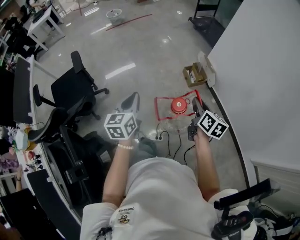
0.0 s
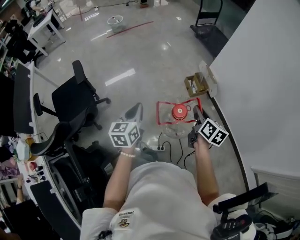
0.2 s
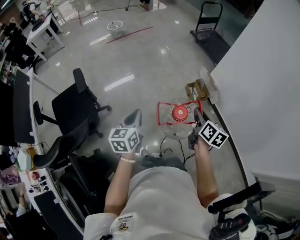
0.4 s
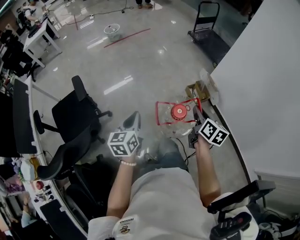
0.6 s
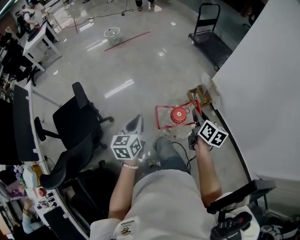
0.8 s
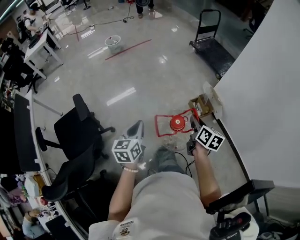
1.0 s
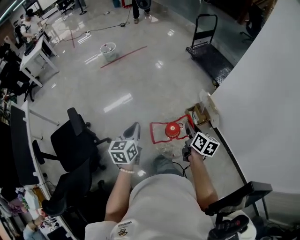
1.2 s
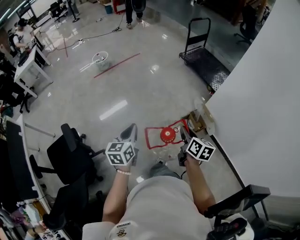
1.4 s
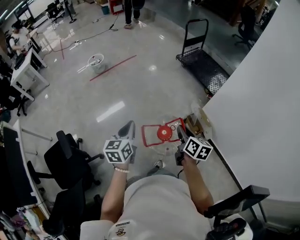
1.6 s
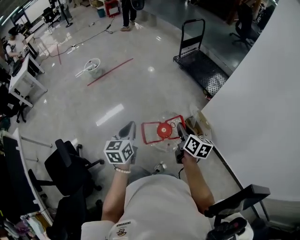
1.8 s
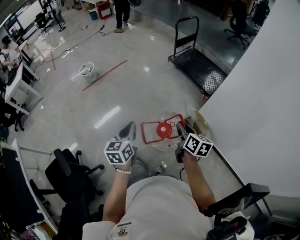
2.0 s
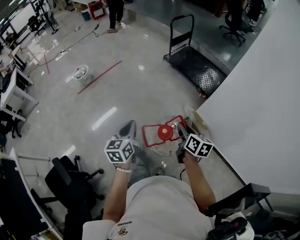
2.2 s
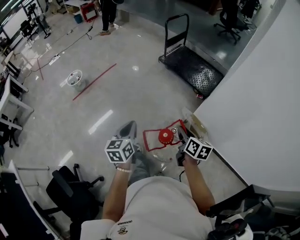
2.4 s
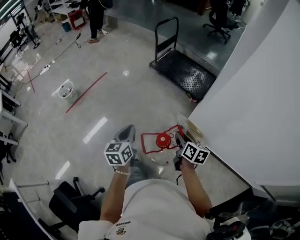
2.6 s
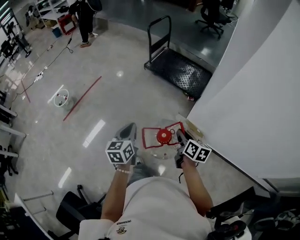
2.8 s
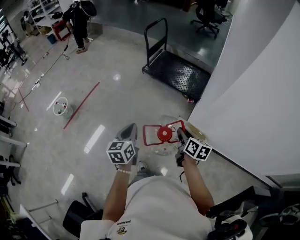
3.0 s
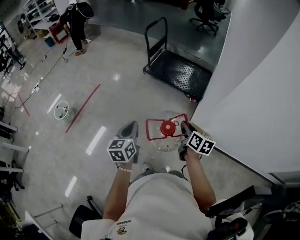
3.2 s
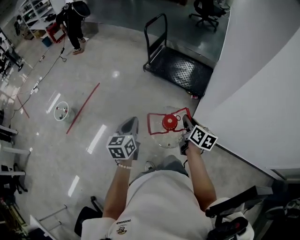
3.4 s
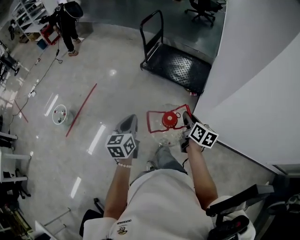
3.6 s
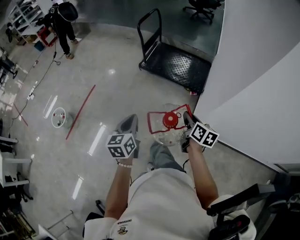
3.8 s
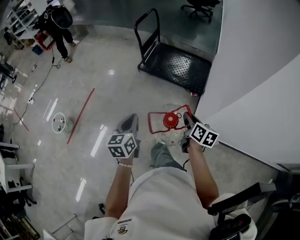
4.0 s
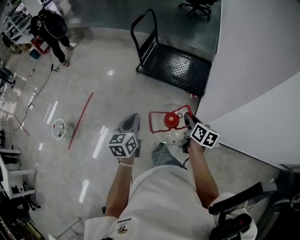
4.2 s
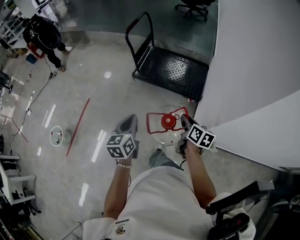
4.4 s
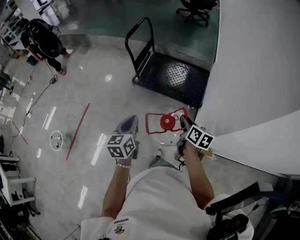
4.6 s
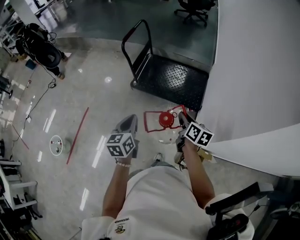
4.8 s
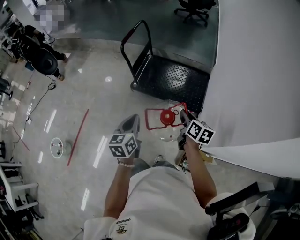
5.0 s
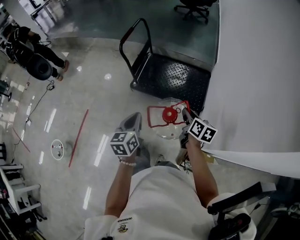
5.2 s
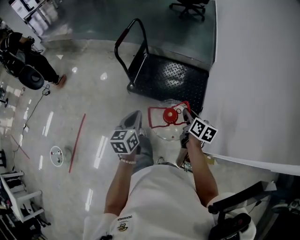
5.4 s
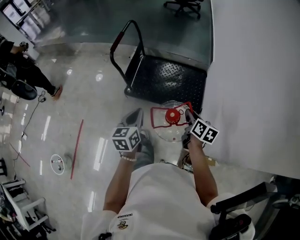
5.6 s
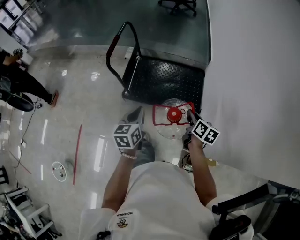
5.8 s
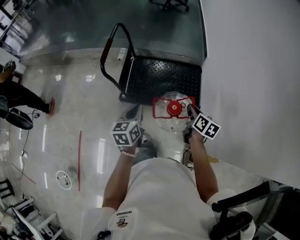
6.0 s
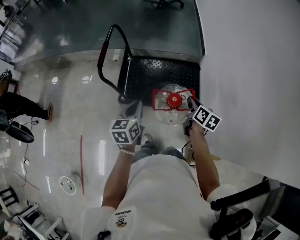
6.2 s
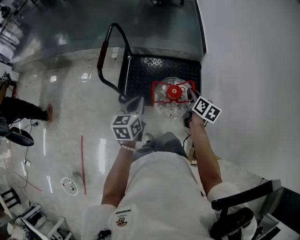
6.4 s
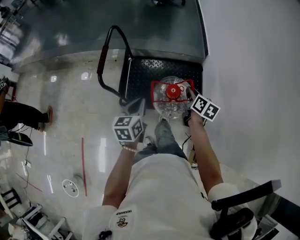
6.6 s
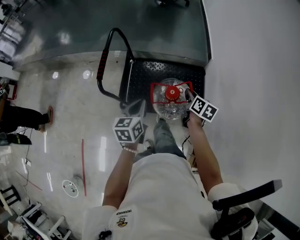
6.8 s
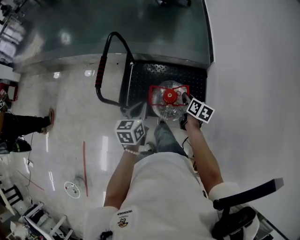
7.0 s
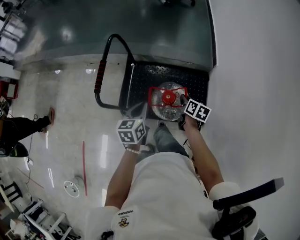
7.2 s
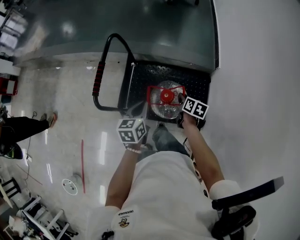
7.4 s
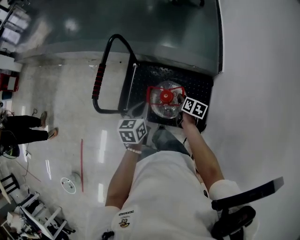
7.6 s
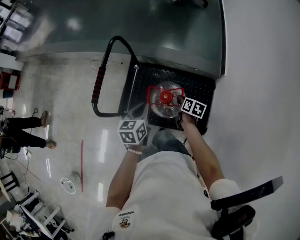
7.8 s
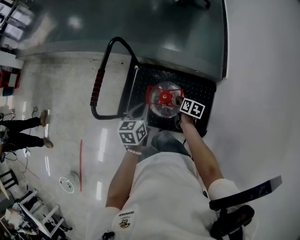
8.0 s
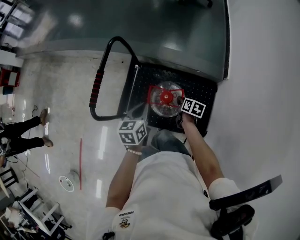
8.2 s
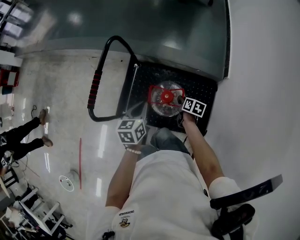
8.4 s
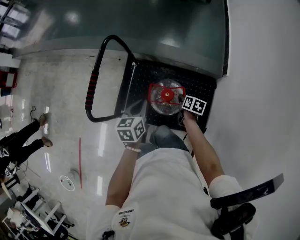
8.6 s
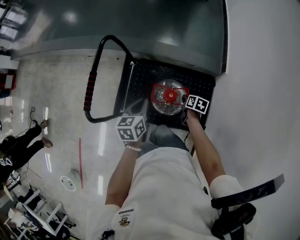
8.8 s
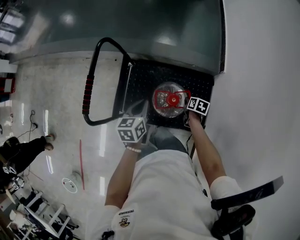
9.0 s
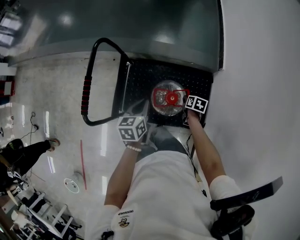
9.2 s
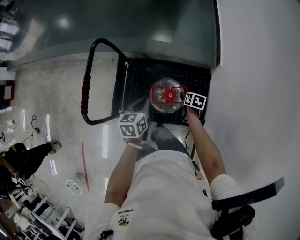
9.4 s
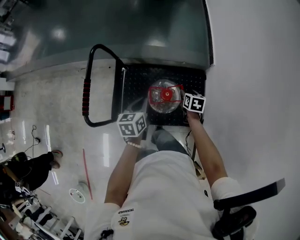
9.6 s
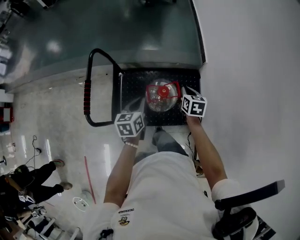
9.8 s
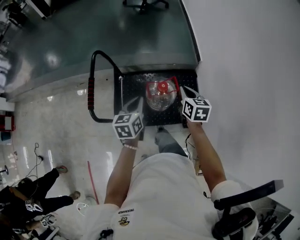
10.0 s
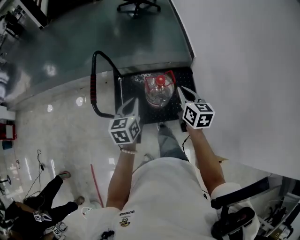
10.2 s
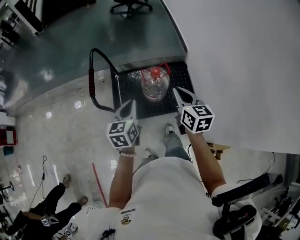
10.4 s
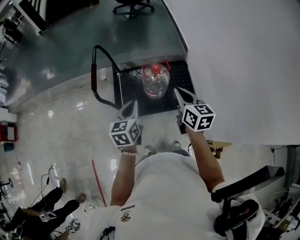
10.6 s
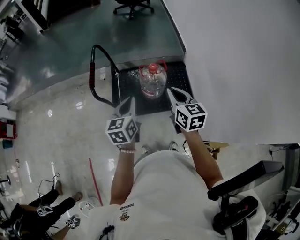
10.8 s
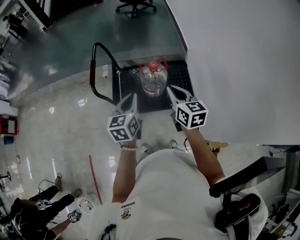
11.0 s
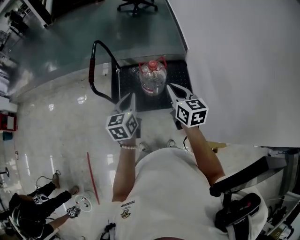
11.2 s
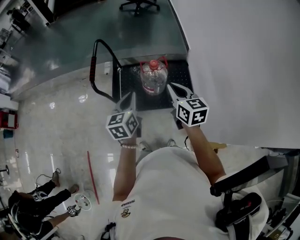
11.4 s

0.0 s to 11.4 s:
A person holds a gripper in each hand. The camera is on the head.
0.0 to 1.4 s: The pair of grippers is taken forward, about 40 cm.
1.4 to 2.8 s: Both grippers are carried forward, about 50 cm.
2.8 to 4.2 s: Both grippers move forward, approximately 35 cm.
4.2 to 5.6 s: The two grippers travel together, forward, approximately 50 cm.
5.6 to 7.2 s: The two grippers travel together, forward, approximately 40 cm.
7.2 to 8.6 s: The left gripper heads forward and downward, covering roughly 10 cm, while the right gripper is displaced downward and forward by approximately 15 cm.
8.6 to 10.0 s: The left gripper goes approximately 10 cm upward, while the right gripper is displaced upward by some 25 cm, swivels some 30 degrees, and opens, then closes again.
10.0 to 11.4 s: The left gripper goes forward and backward, some 10 cm each way, reversing 2 times, while the right gripper heads upward and backward, covering approximately 15 cm, and changes its angle by some 20 degrees.

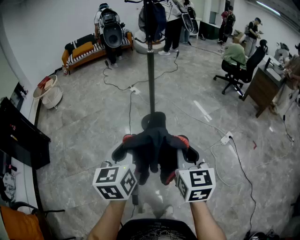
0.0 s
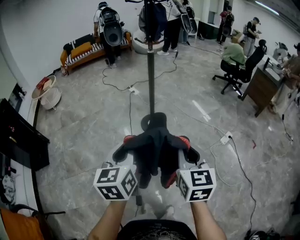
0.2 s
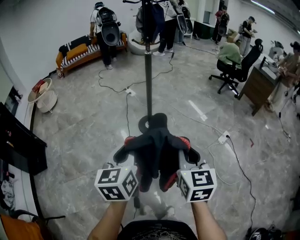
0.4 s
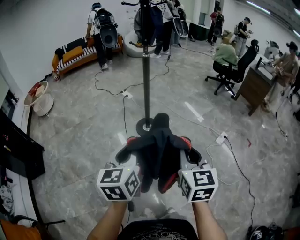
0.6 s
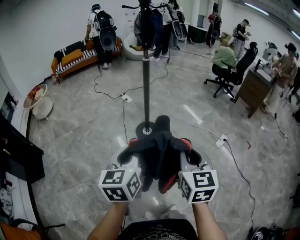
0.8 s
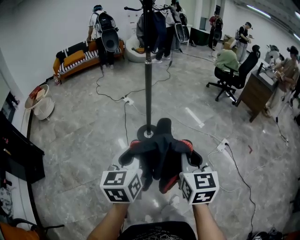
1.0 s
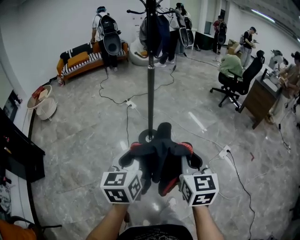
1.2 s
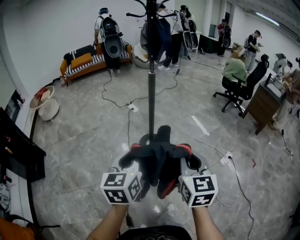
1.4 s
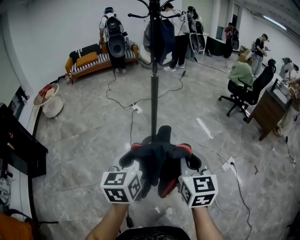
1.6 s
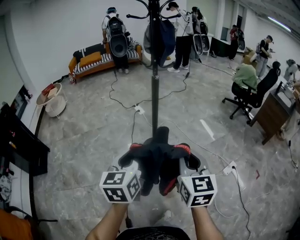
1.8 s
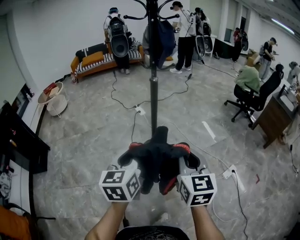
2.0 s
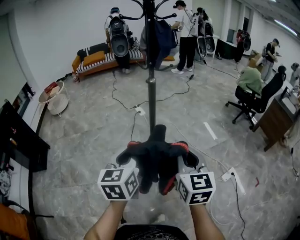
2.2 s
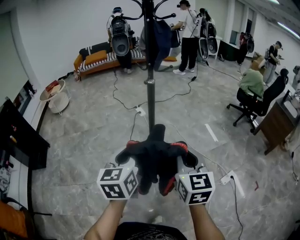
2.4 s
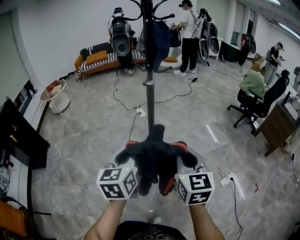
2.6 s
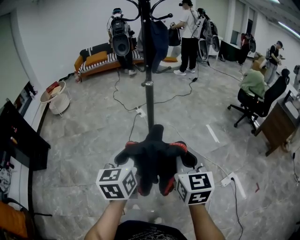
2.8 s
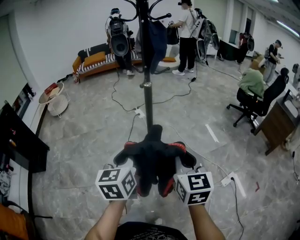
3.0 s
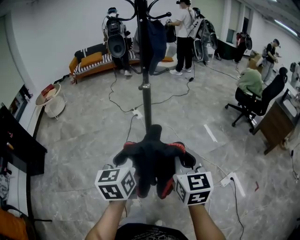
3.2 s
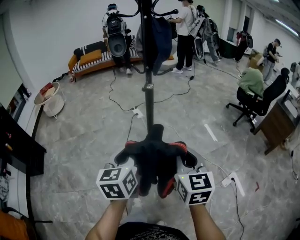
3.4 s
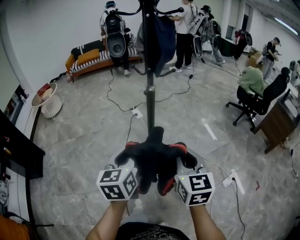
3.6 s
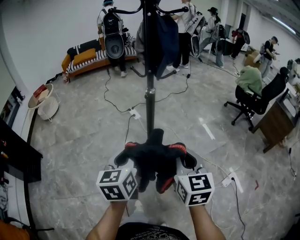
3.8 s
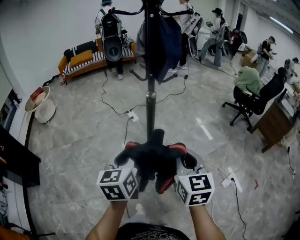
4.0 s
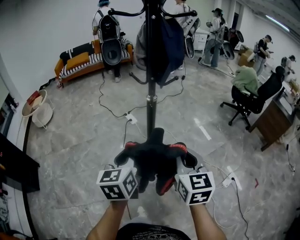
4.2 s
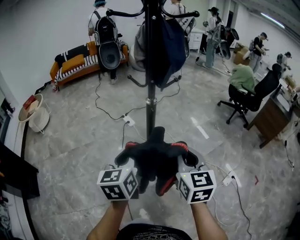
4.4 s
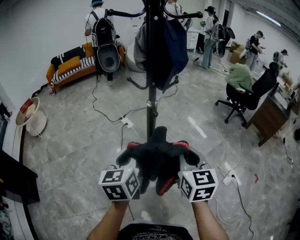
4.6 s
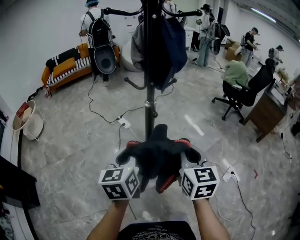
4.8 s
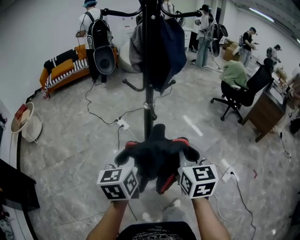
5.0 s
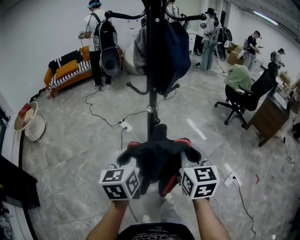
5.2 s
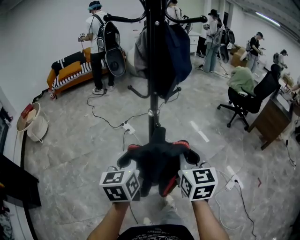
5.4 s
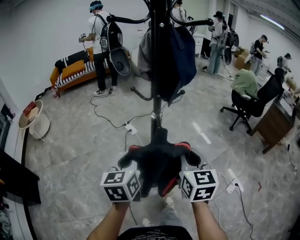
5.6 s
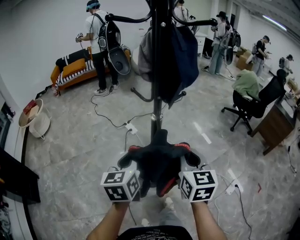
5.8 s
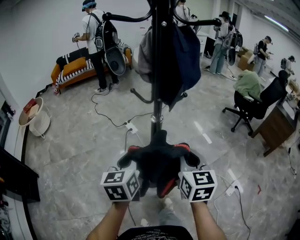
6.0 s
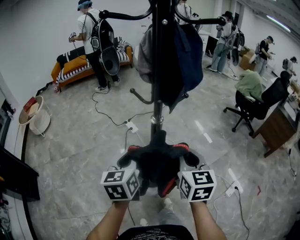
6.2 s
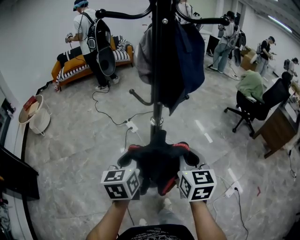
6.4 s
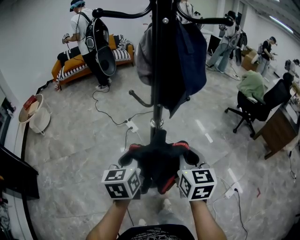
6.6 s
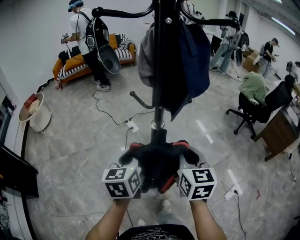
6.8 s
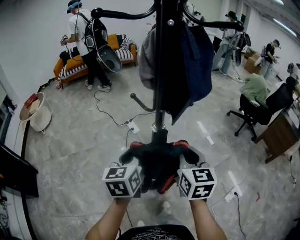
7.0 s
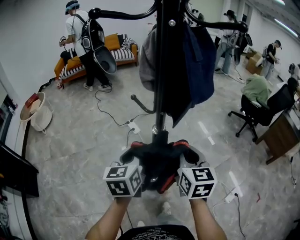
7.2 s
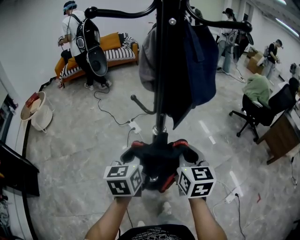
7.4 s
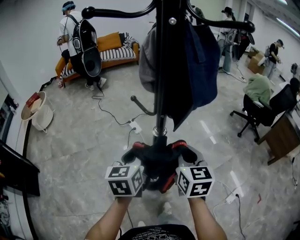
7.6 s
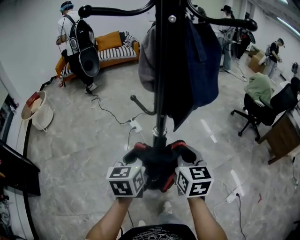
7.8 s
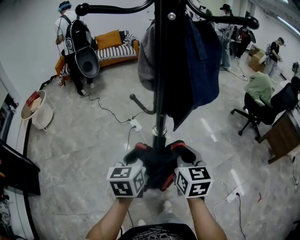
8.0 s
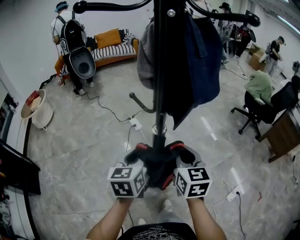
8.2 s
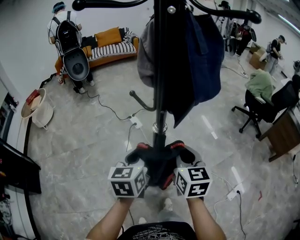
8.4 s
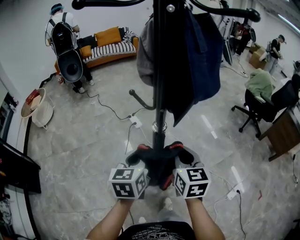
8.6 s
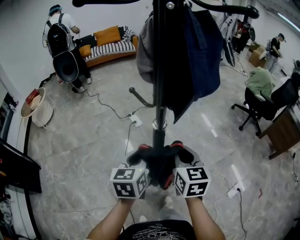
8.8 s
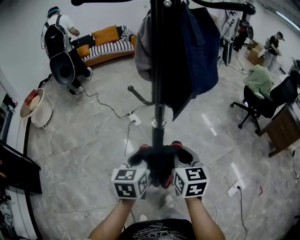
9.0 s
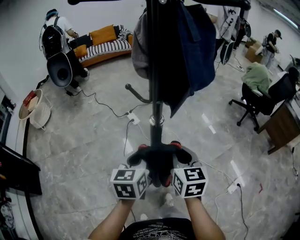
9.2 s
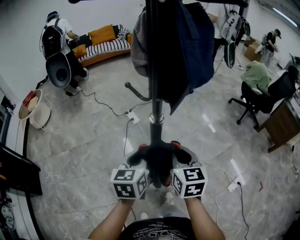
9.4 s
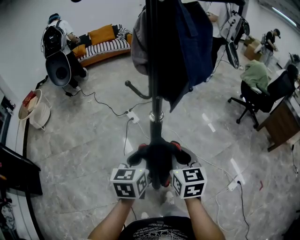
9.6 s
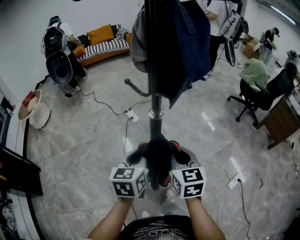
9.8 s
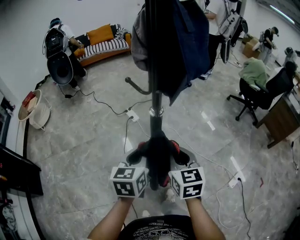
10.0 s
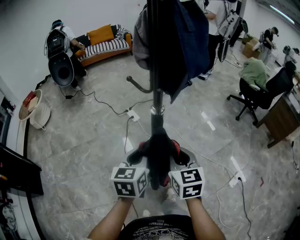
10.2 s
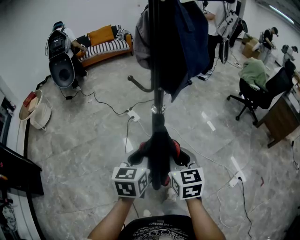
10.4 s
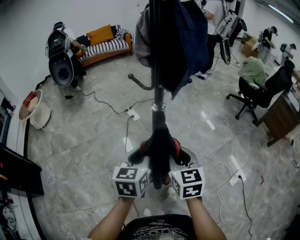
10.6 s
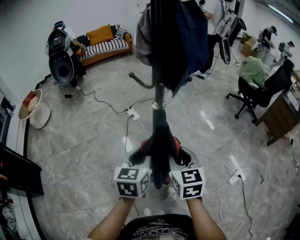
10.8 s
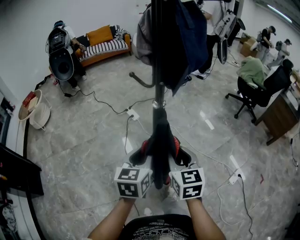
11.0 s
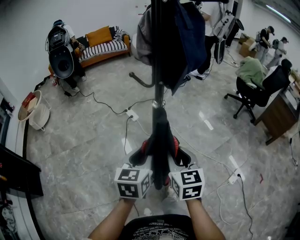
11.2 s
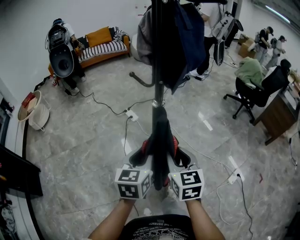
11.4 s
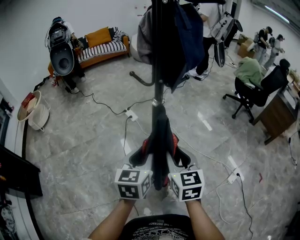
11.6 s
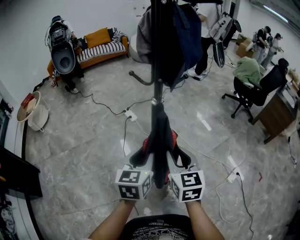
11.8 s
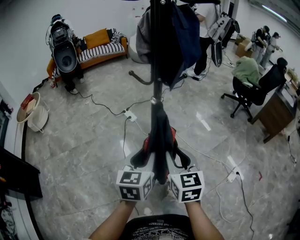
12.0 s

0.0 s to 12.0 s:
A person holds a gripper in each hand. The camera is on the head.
0.0 to 1.6 s: Both grippers travel together forward, some 15 cm.
1.6 to 3.0 s: Both grippers move forward and to the right, approximately 15 cm.
3.0 to 4.4 s: The grippers both shift forward by approximately 20 cm.
4.4 to 6.0 s: Both grippers move forward, approximately 10 cm.
6.0 to 7.6 s: The two grippers go about 10 cm forward.
7.6 to 9.0 s: The left gripper moves about 5 cm.
9.0 to 10.4 s: The two grippers go some 5 cm backward.
10.4 to 12.0 s: Both grippers move backward, roughly 5 cm.

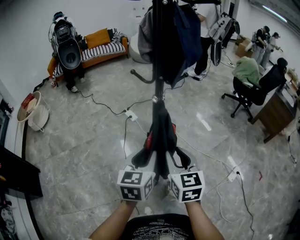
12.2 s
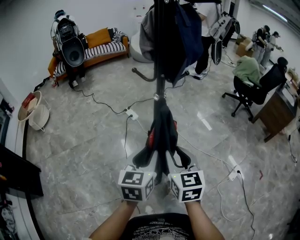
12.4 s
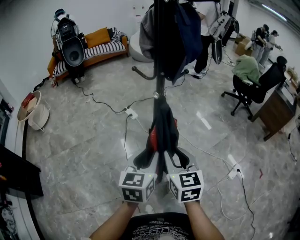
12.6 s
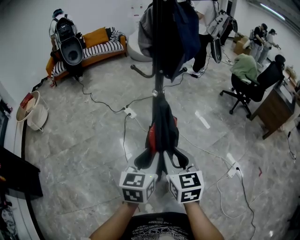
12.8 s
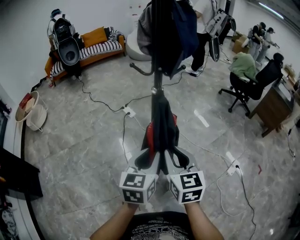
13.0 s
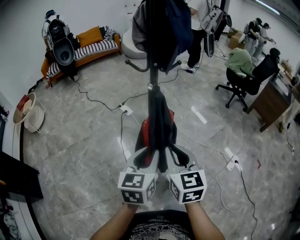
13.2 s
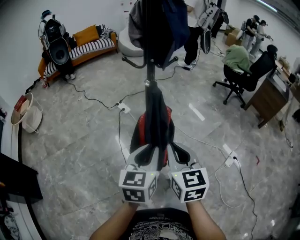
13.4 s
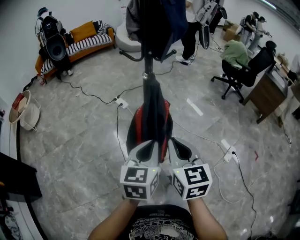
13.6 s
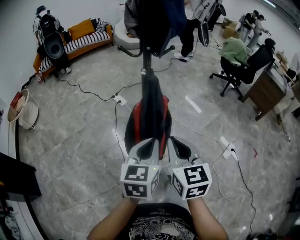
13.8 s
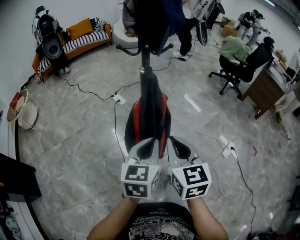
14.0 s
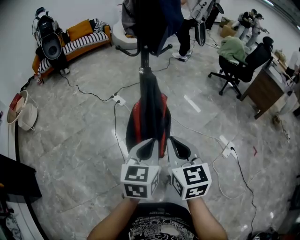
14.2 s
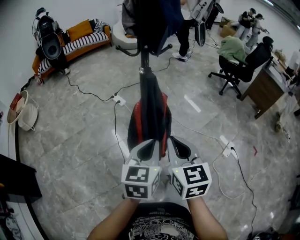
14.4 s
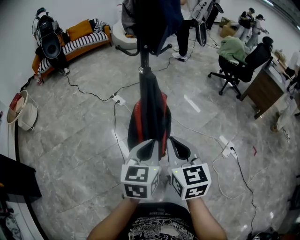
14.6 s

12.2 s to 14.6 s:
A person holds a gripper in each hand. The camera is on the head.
12.2 to 13.4 s: Both grippers move backward, some 5 cm. The right gripper closes up.
13.4 to 14.6 s: There are only small adjustments of the grippers.
